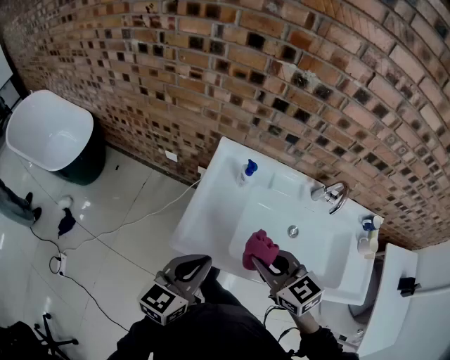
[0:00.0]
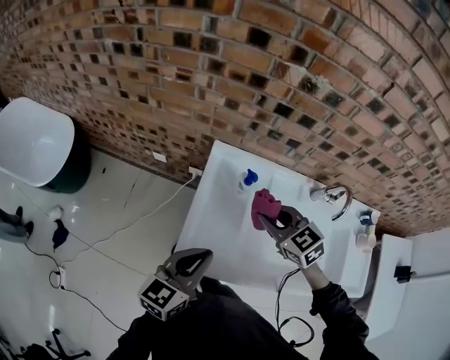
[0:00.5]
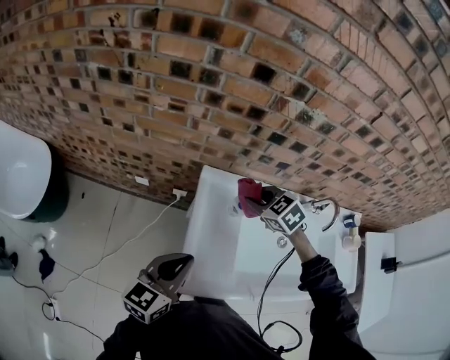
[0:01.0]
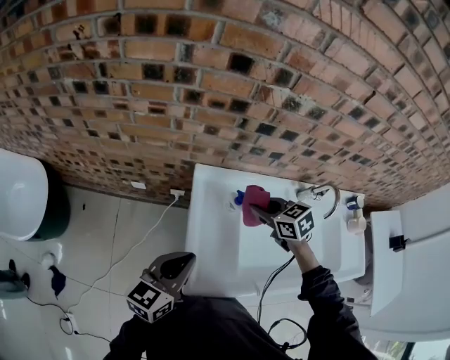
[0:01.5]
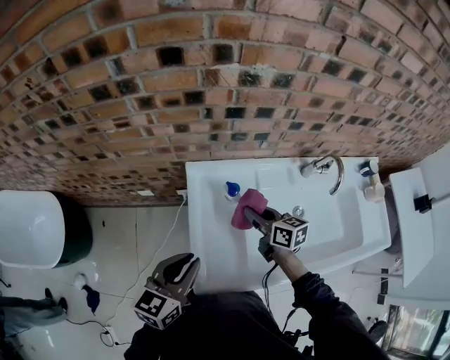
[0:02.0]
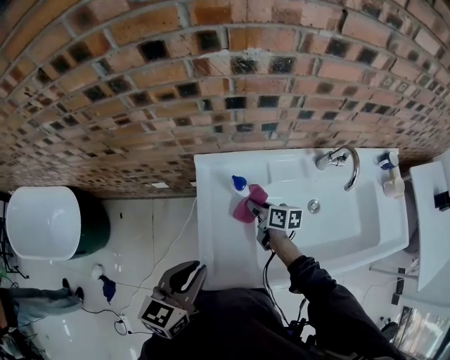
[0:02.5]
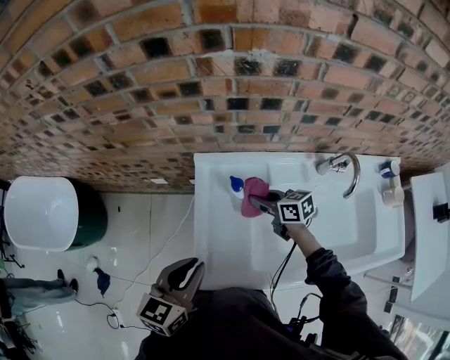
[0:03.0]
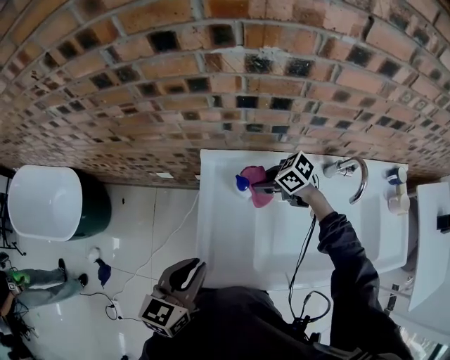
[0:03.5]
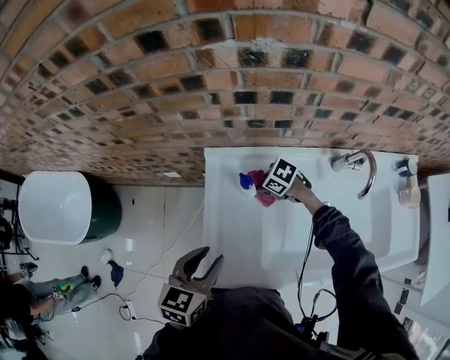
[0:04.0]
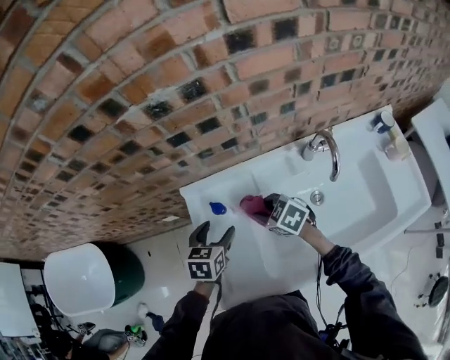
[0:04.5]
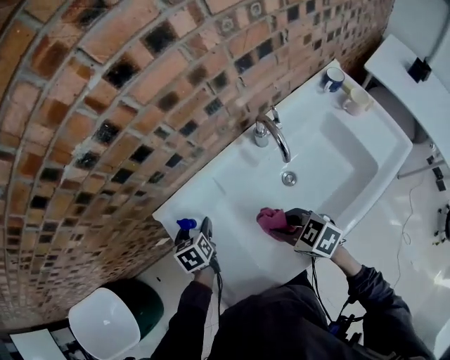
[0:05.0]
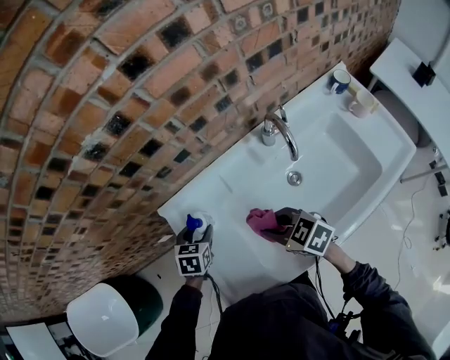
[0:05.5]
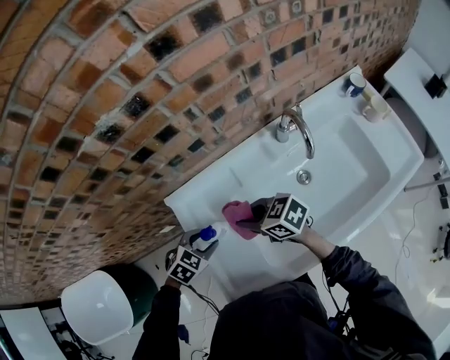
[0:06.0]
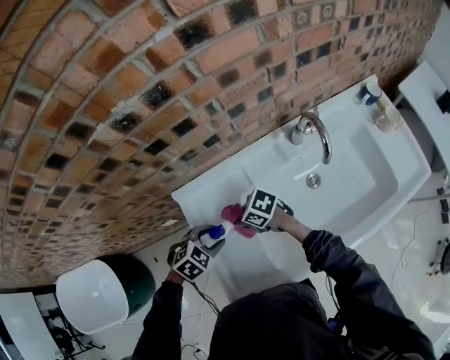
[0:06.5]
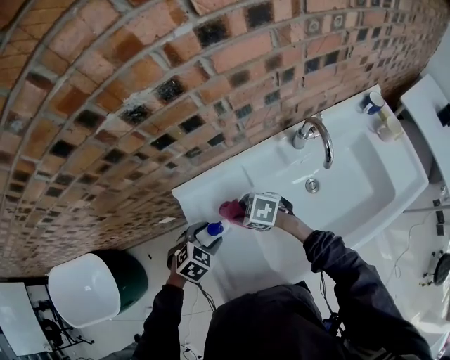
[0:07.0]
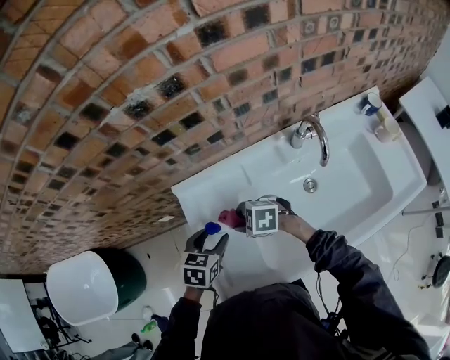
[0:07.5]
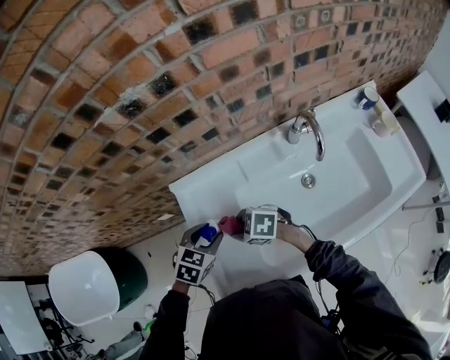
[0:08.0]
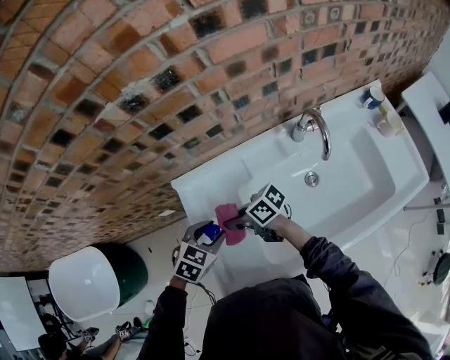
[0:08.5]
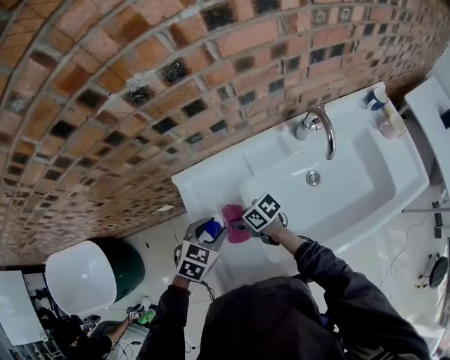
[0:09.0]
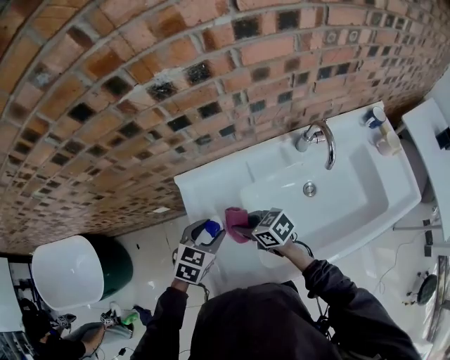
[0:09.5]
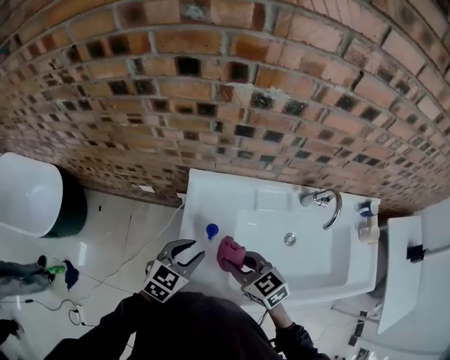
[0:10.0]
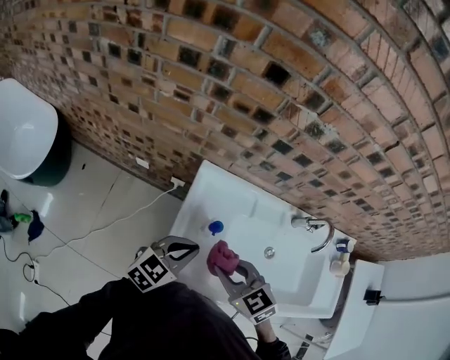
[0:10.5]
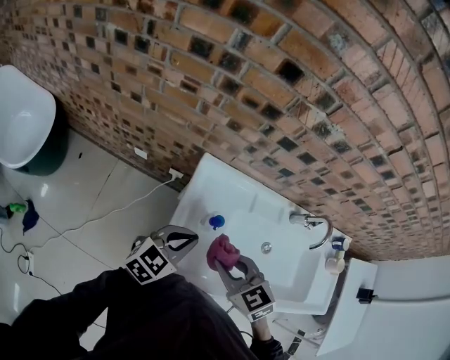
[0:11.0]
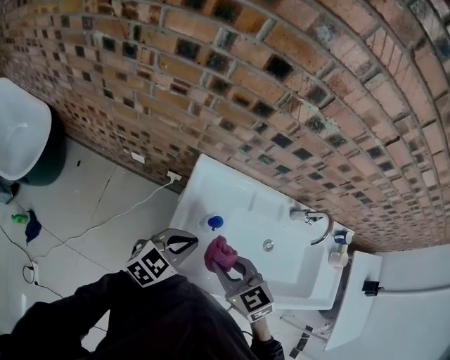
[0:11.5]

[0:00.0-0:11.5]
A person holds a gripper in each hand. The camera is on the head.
0:00.0 to 0:02.0: The left gripper heads forward and to the left, covering some 20 cm, while the right gripper travels forward and downward by roughly 25 cm, and rotates around the line of its fingers by roughly 40 degrees, clockwise from behind.
0:02.0 to 0:04.0: The right gripper moves up and down over some 15 cm, changing direction 2 times, and tilts its fingers approximately 30 degrees downward. Meanwhile the left gripper shifts by about 5 cm.
0:04.0 to 0:06.0: The right gripper moves upward, roughly 15 cm, and tilts its fingers roughly 30 degrees upward. Meanwhile the left gripper heads downward, covering roughly 15 cm, turns by about 60 degrees, and opens and closes again.
0:06.0 to 0:07.5: The left gripper changes its angle by approximately 40 degrees, while the right gripper shifts by about 10 cm, and rotates approximately 40 degrees.
0:07.5 to 0:09.5: The right gripper turns by about 50 degrees.
0:09.5 to 0:11.5: The left gripper travels backward and upward by roughly 10 cm, swivels about 30 degrees, and closes. Meanwhile the right gripper heads upward and backward, covering roughly 15 cm, and rotates about 40 degrees.

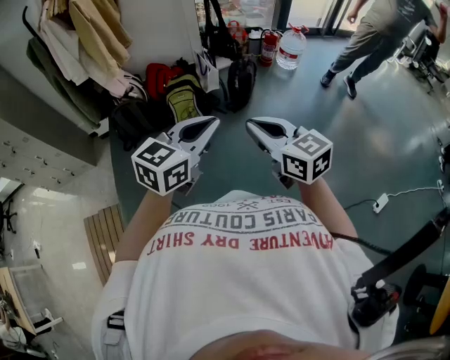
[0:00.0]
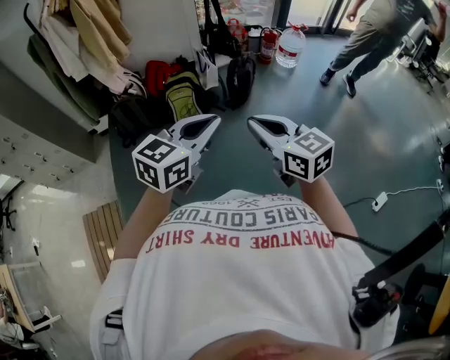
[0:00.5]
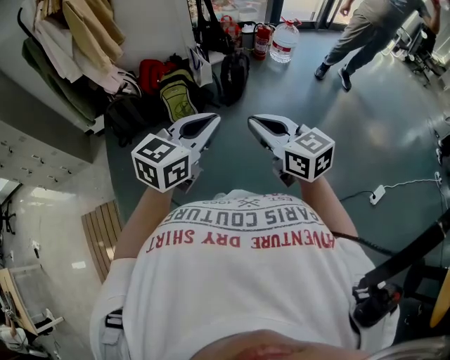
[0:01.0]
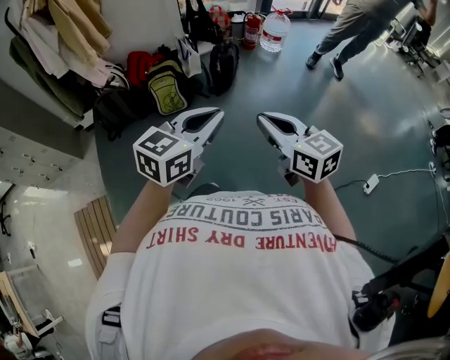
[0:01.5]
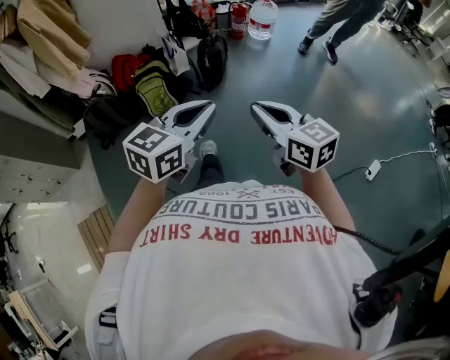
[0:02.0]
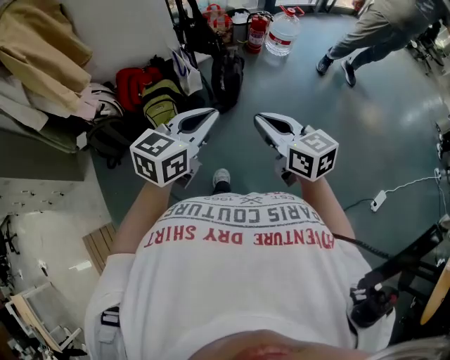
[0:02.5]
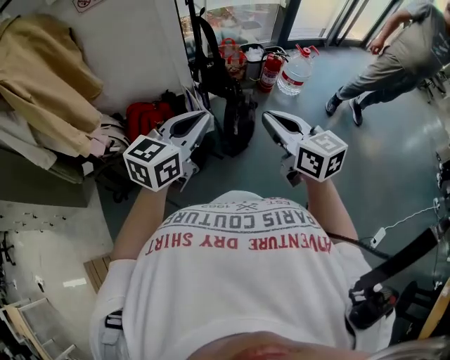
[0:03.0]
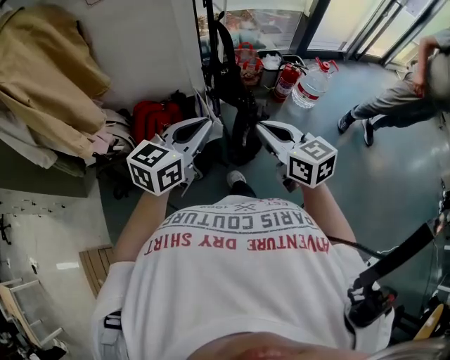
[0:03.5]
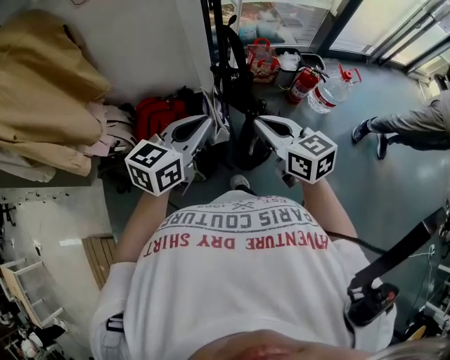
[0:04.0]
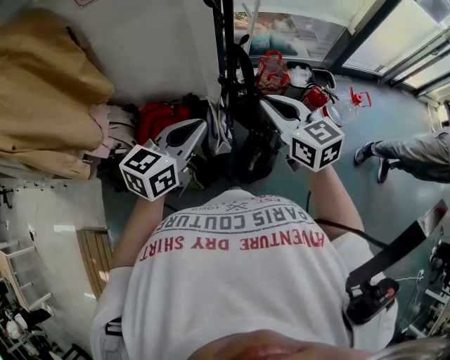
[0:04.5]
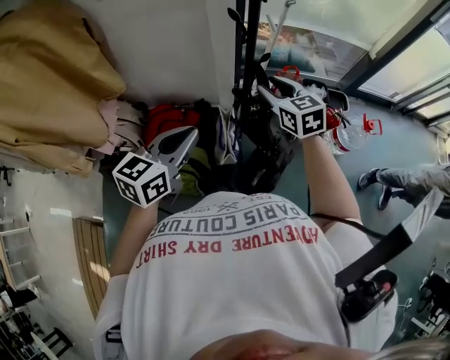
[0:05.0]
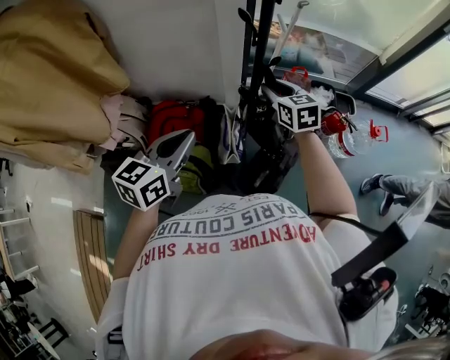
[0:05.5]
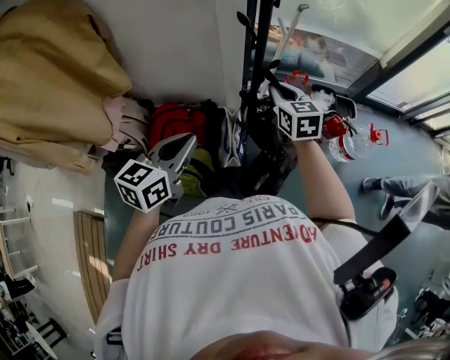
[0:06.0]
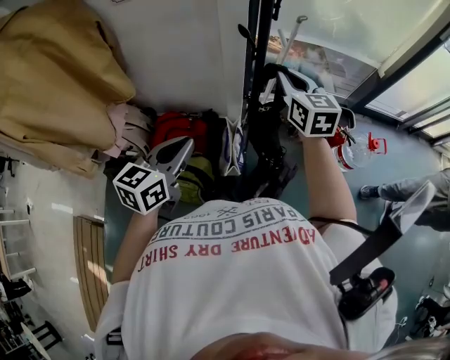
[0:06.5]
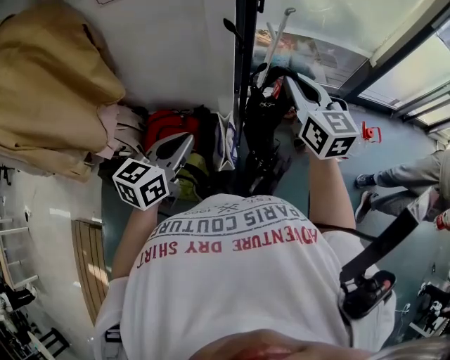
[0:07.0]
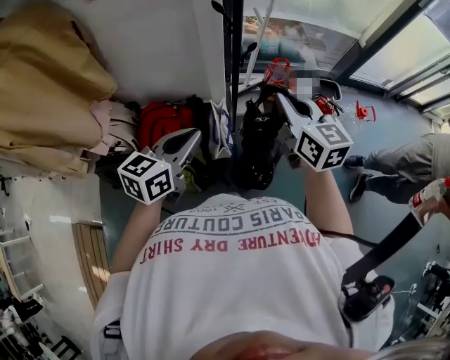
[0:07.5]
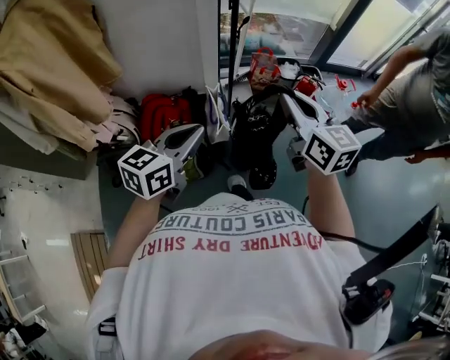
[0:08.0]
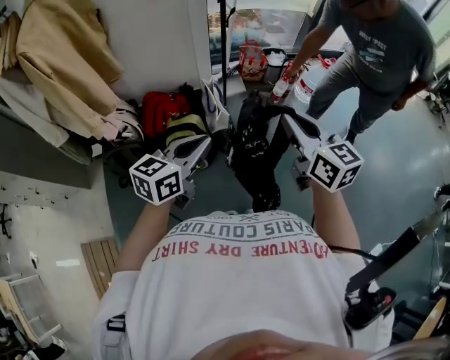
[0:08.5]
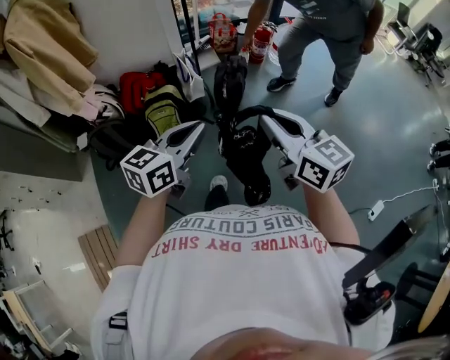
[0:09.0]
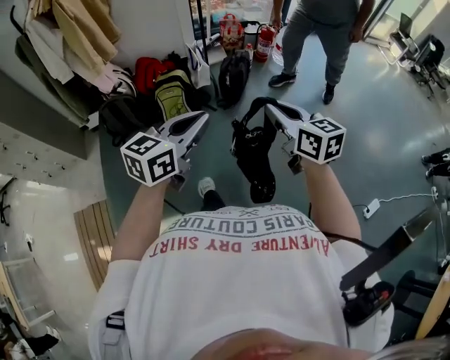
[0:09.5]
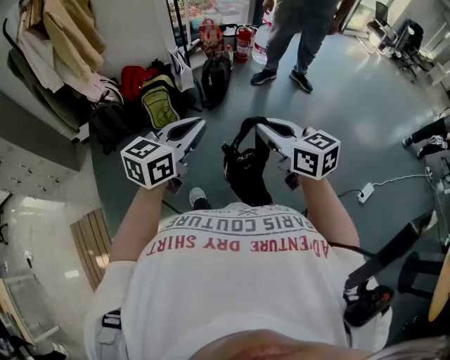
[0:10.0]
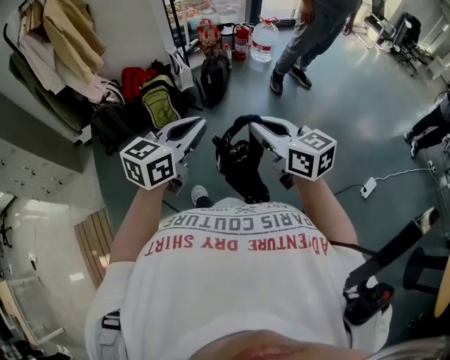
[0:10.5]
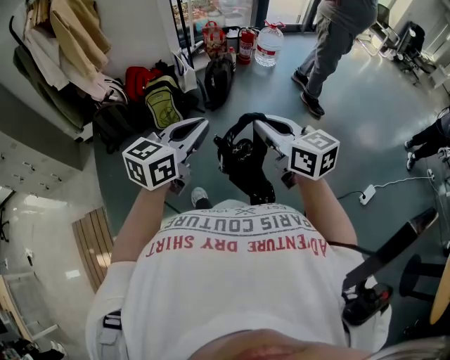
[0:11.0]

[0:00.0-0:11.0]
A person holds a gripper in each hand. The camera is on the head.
0:00.0 to 0:02.0: The right gripper shifts approximately 10 cm to the right and downward; the left gripper moves to the right, some 10 cm.
0:02.0 to 0:03.5: The pair of grippers is taken forward, approximately 50 cm.
0:03.5 to 0:05.5: The left gripper travels forward by approximately 25 cm, and changes its angle by approximately 30 degrees. Meanwhile the right gripper heads forward, covering about 50 cm, and opens up.
0:05.5 to 0:07.5: The left gripper moves approximately 5 cm, while the right gripper is displaced backward, upward and to the right by about 20 cm, and closes its fingers.
0:07.5 to 0:09.0: The two grippers travel together, backward, about 60 cm. The left gripper rotates about 20 degrees.
0:09.0 to 0:11.0: The two grippers go approximately 30 cm backward.

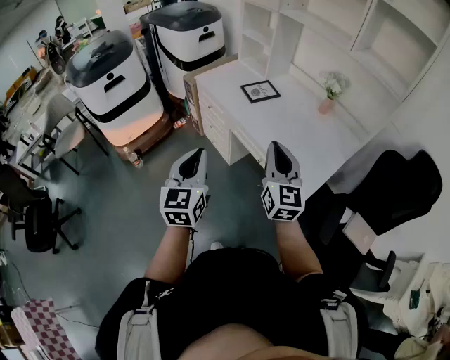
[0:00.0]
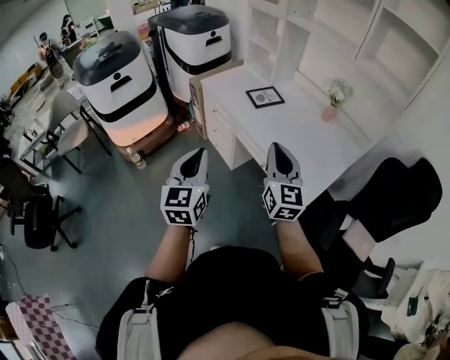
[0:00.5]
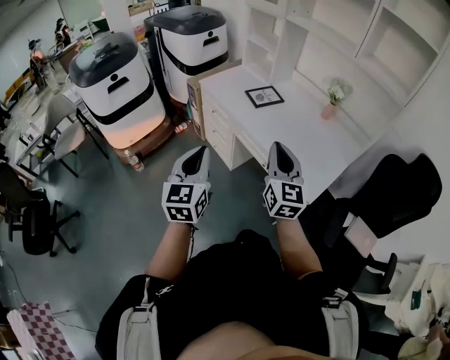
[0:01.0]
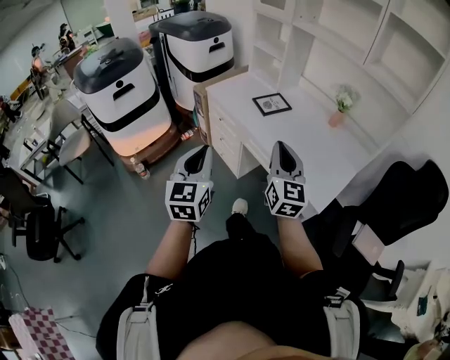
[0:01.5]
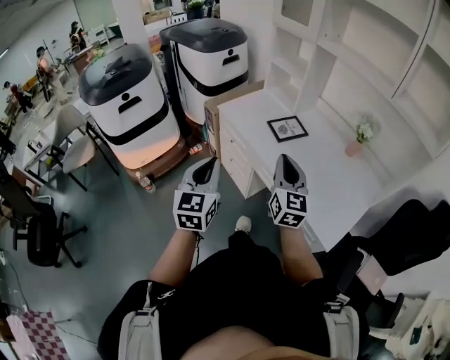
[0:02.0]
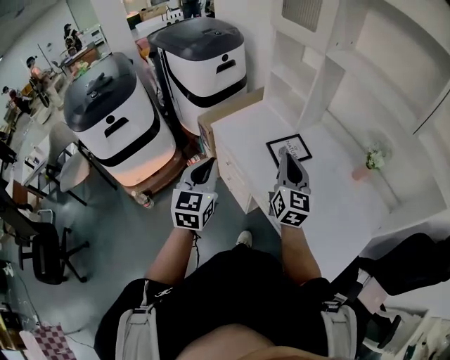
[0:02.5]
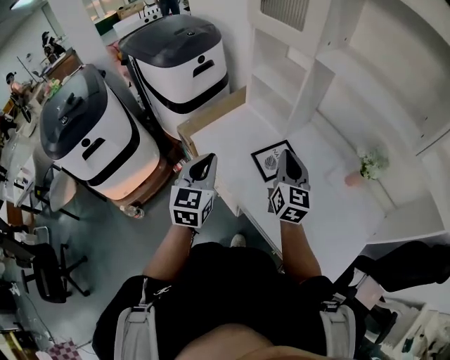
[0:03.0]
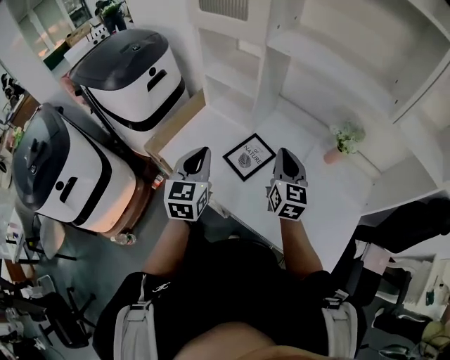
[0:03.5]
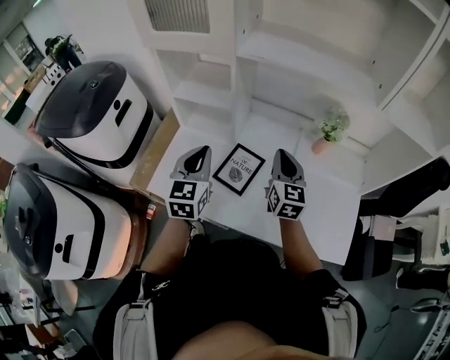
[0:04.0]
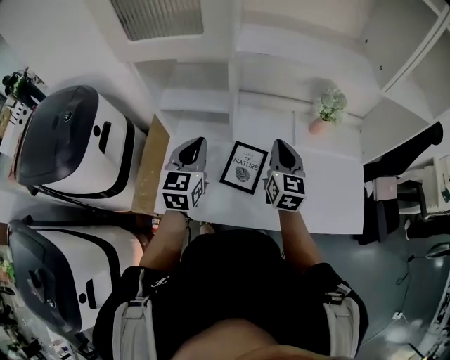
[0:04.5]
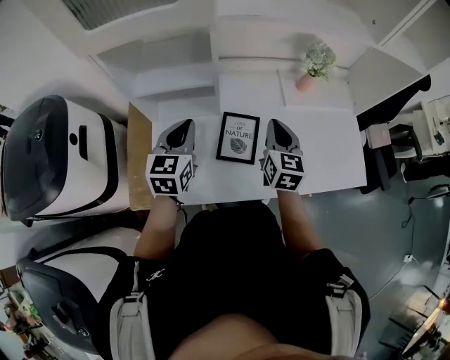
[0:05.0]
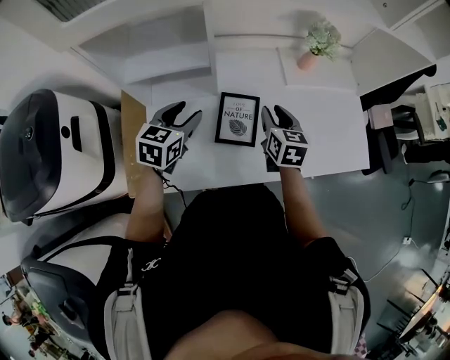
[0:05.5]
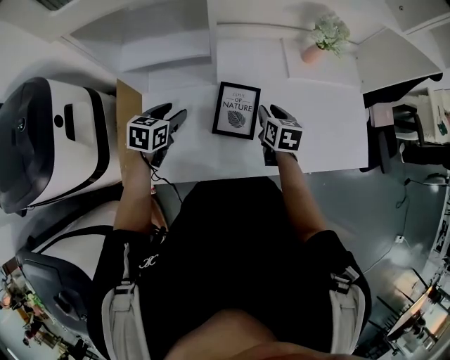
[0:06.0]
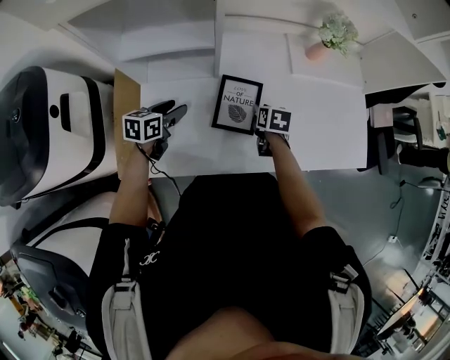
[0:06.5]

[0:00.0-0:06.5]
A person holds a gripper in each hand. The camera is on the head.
0:00.0 to 0:02.0: Both grippers travel together forward and to the left, roughly 20 cm.
0:02.0 to 0:04.5: Both grippers are carried approximately 50 cm. The right gripper rotates about 50 degrees. Meanwhile the left gripper rotates approximately 50 degrees.
0:04.5 to 0:06.5: The grippers both shift downward by about 25 cm. The left gripper rotates approximately 50 degrees, and opens; the right gripper angles its fingers downward, by some 50 degrees, and opens its fingers.
